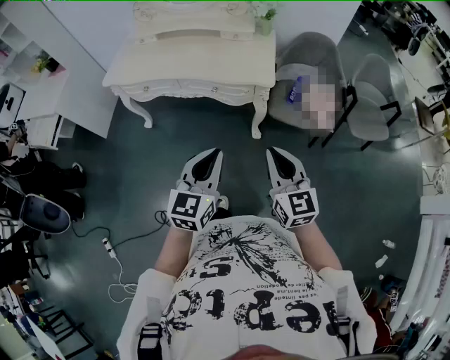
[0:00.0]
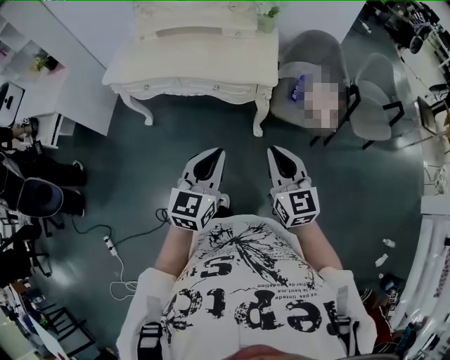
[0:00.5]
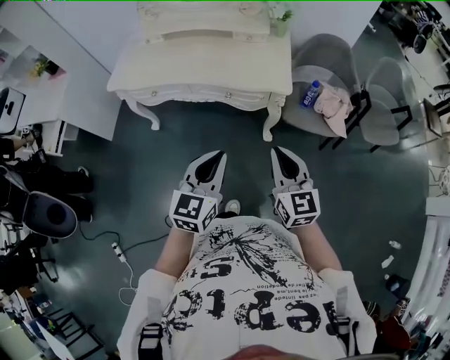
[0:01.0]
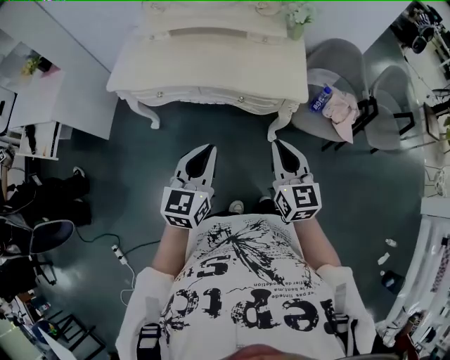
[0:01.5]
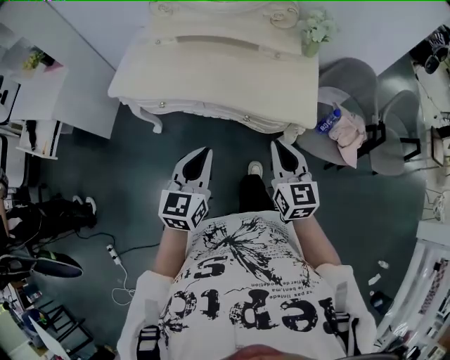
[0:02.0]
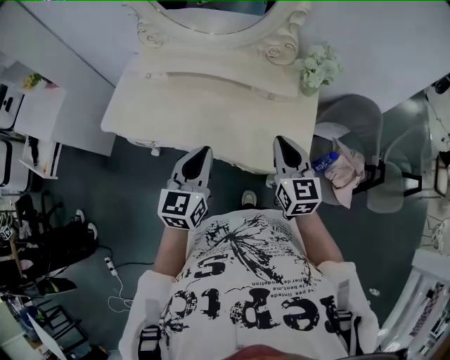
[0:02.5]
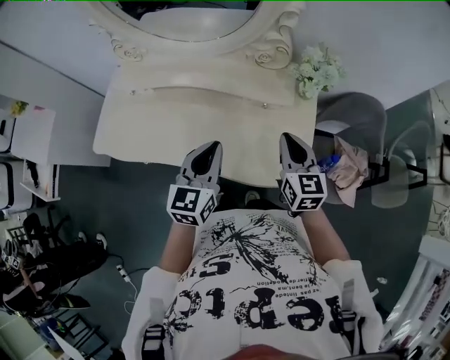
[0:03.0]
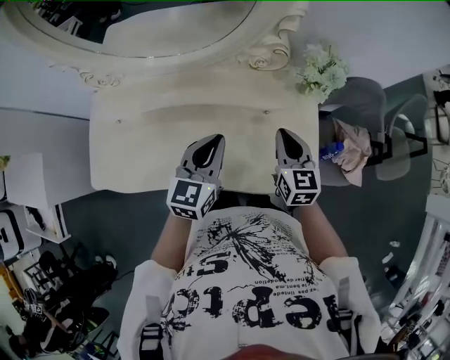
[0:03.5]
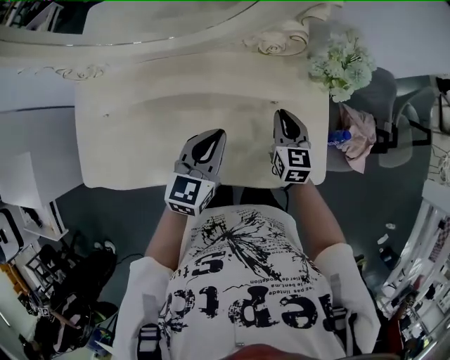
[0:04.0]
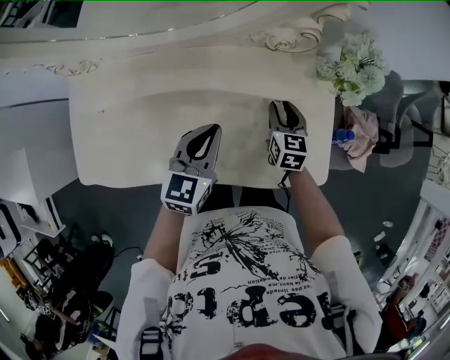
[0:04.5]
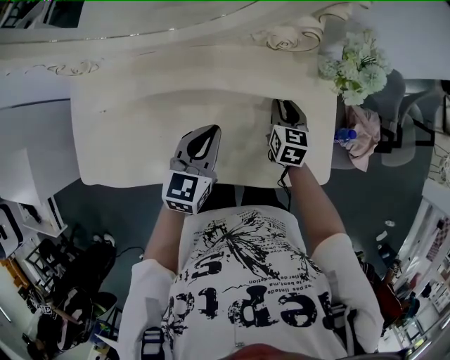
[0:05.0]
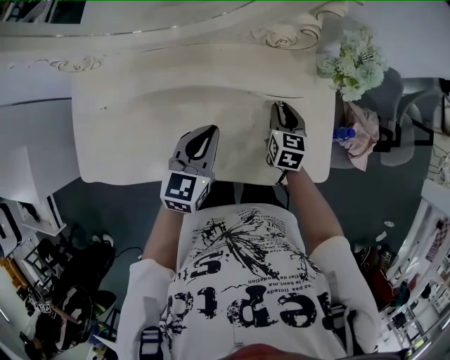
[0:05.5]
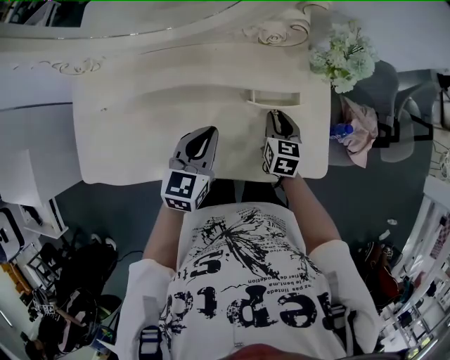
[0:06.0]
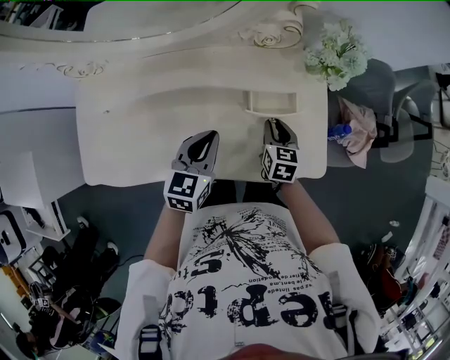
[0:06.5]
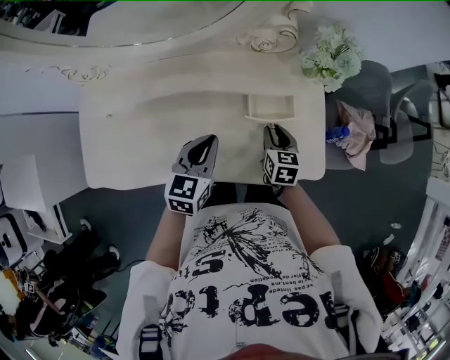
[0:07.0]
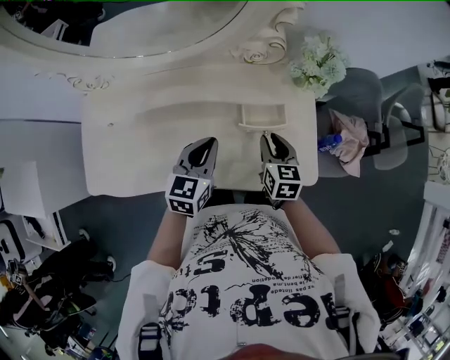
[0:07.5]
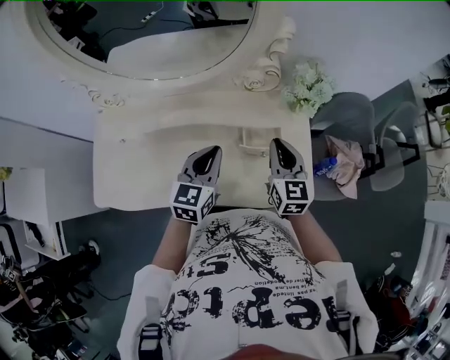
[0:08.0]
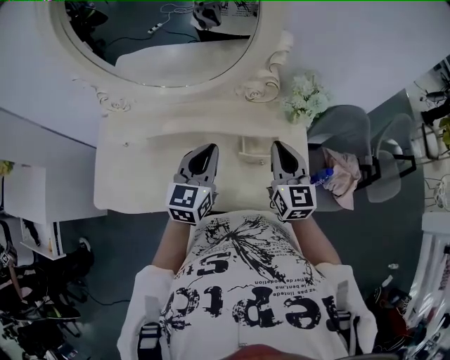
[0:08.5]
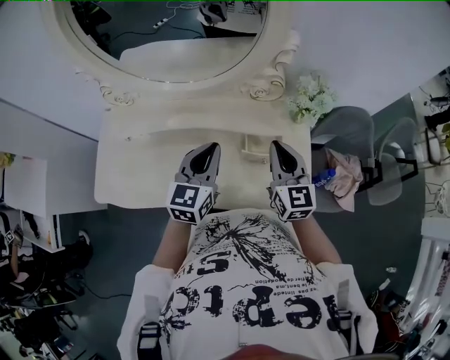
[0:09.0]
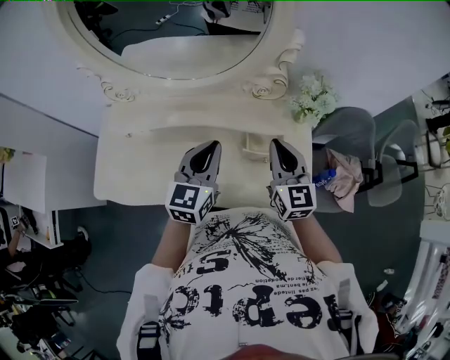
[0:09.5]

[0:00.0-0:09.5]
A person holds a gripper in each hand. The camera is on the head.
0:00.0 to 0:02.0: The two grippers go about 30 cm forward and to the left.
0:02.0 to 0:04.0: Both grippers are carried forward, approximately 40 cm. The right gripper swivels approximately 20 degrees. The left gripper turns by approximately 20 degrees.
0:04.0 to 0:05.5: The right gripper travels downward by about 5 cm.
0:05.5 to 0:07.5: The right gripper is displaced backward and upward by about 10 cm.
0:07.5 to 0:09.5: Both grippers travel together upward, roughly 15 cm. The right gripper changes its angle by about 30 degrees, and closes its fingers.

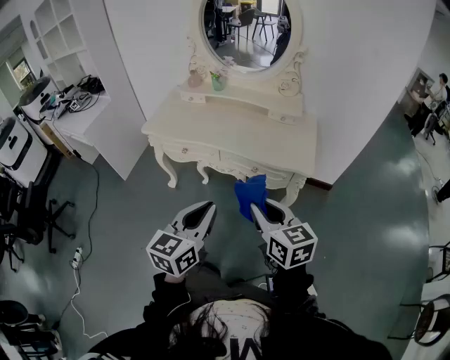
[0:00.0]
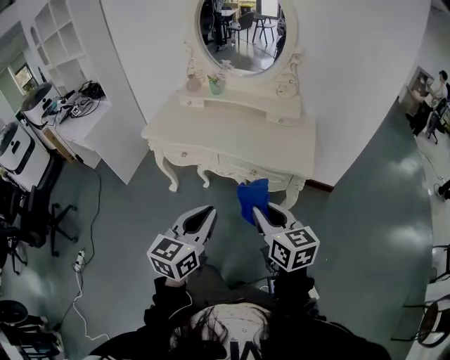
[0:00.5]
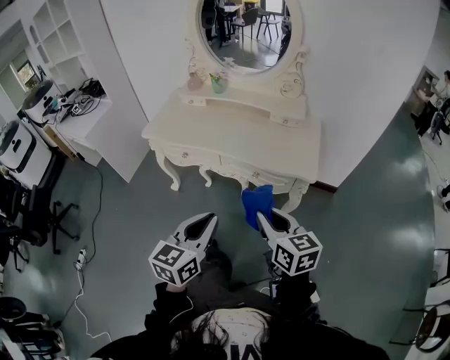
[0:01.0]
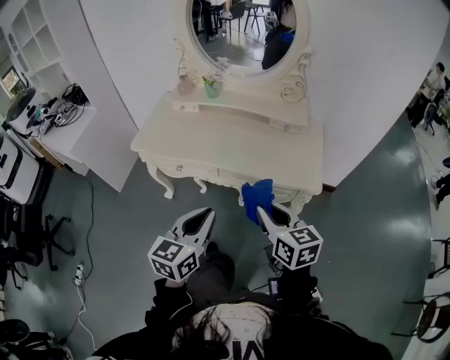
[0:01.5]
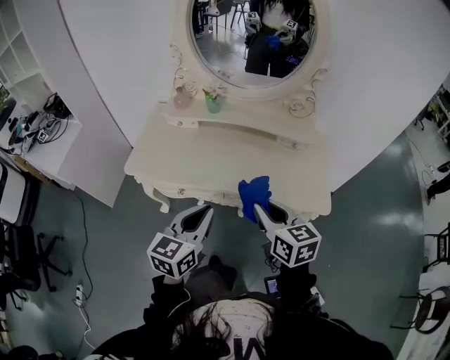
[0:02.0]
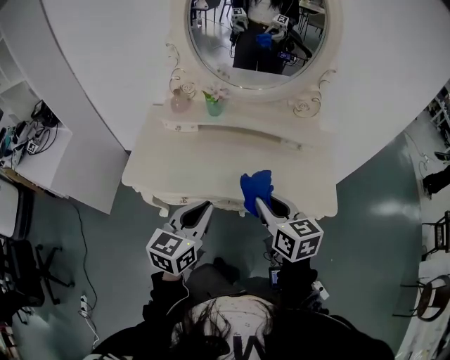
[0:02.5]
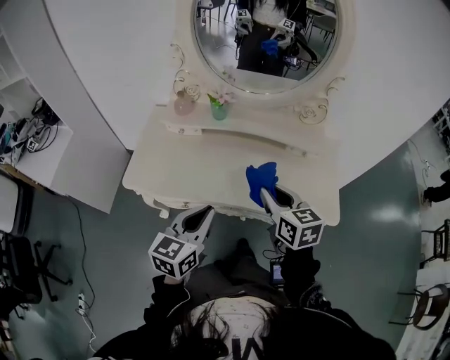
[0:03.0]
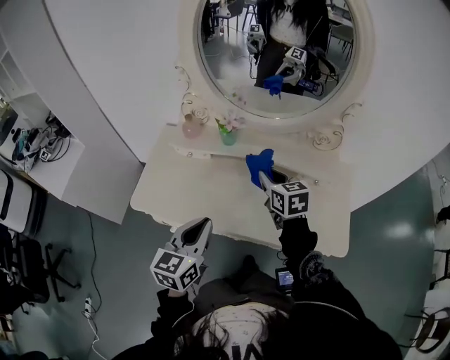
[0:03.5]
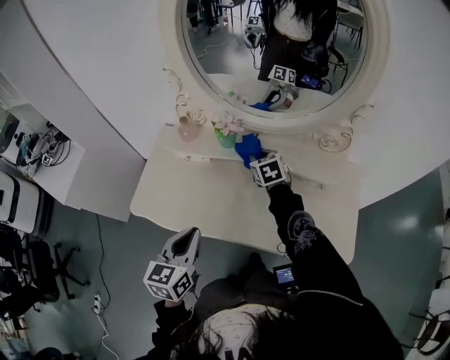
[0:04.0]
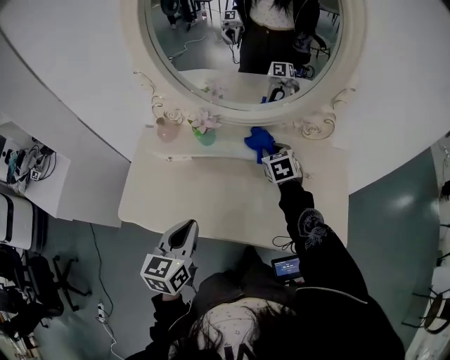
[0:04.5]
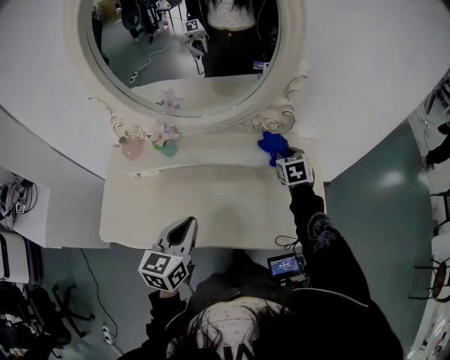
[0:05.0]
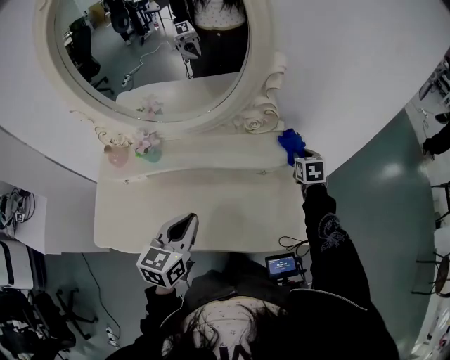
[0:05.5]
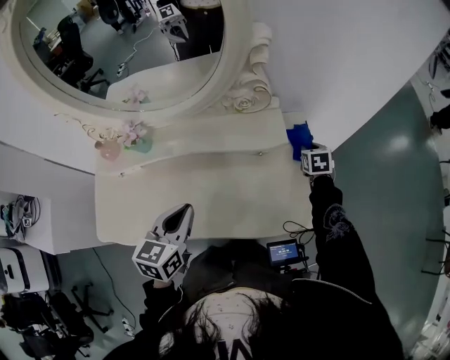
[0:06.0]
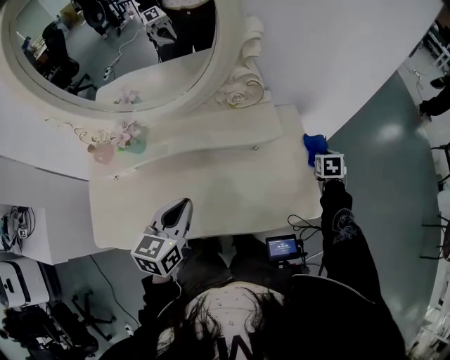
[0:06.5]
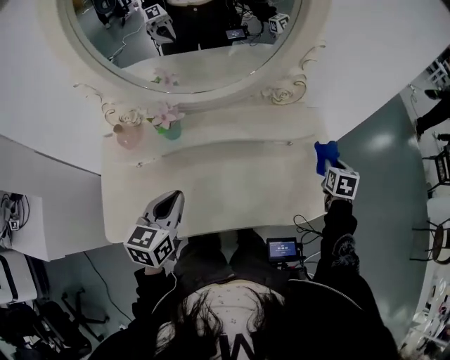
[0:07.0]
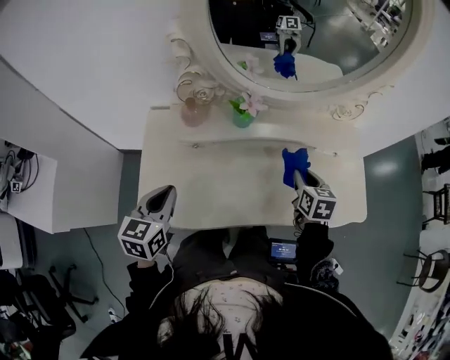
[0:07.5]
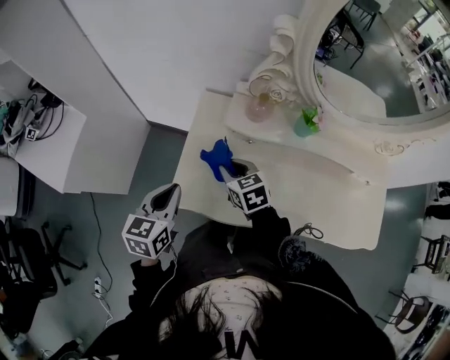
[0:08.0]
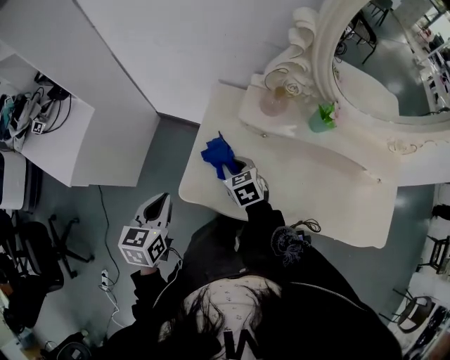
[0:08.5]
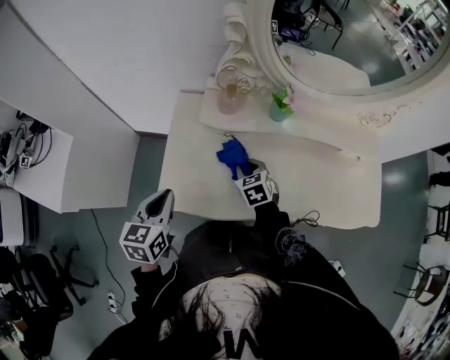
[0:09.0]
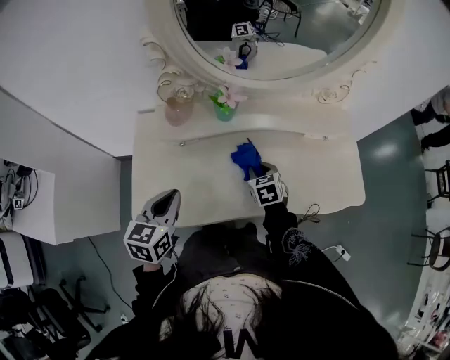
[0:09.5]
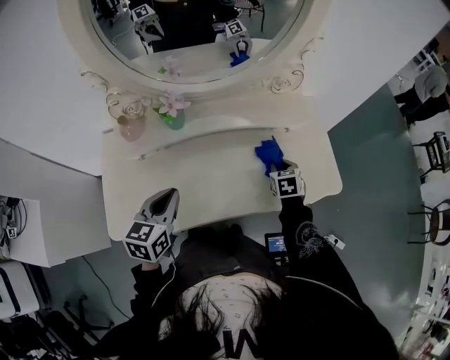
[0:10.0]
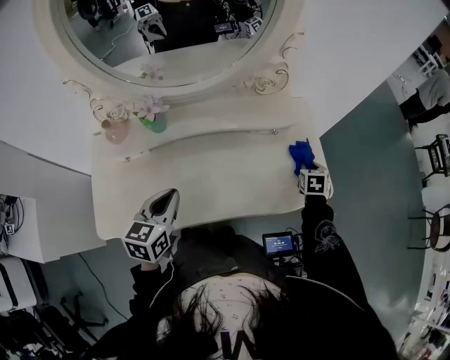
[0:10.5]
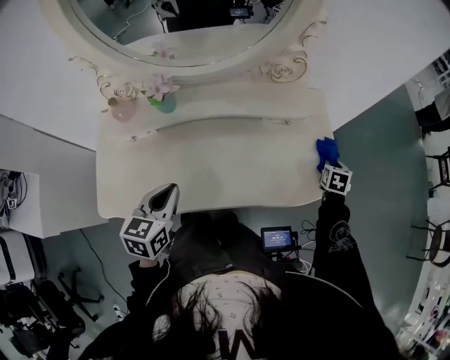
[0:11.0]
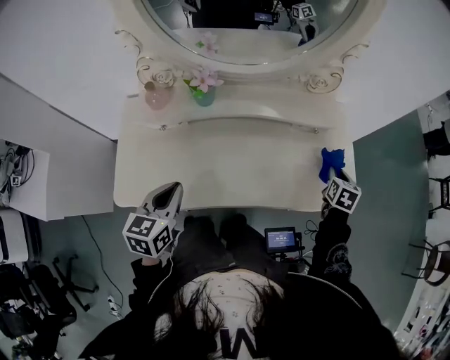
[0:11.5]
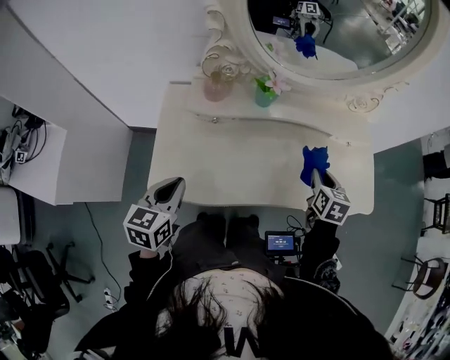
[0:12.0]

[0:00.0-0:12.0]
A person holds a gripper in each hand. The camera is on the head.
0:00.0 to 0:02.0: Both grippers move forward, approximately 25 cm.
0:02.0 to 0:04.0: The left gripper travels forward and to the left by some 15 cm, while the right gripper travels forward by some 40 cm, and swivels roughly 30 degrees.
0:04.0 to 0:06.0: The right gripper changes place by roughly 50 cm, and turns by roughly 40 degrees, while the left gripper ends up approximately 20 cm from where it was, and rotates roughly 20 degrees.
0:06.0 to 0:08.0: The pair of grippers is taken approximately 70 cm. The left gripper rotates roughly 20 degrees. The right gripper swivels roughly 50 degrees.
0:08.0 to 0:10.0: The right gripper changes place by approximately 60 cm, and swivels approximately 50 degrees. Meanwhile the left gripper moves some 30 cm, and swivels some 20 degrees.
0:10.0 to 0:12.0: The right gripper shifts some 15 cm upward and backward, and travels to the right and back again, about 25 cm each way; the left gripper moves to the left and backward, roughly 20 cm.

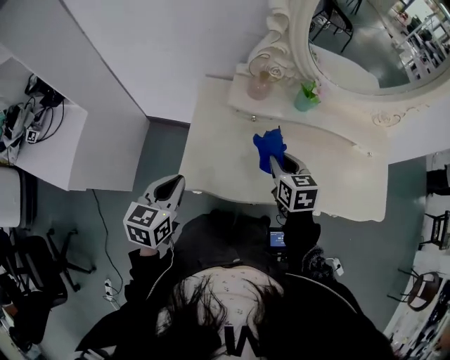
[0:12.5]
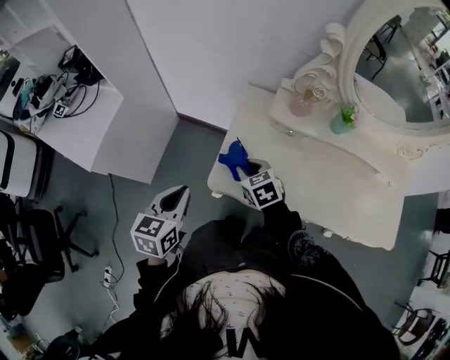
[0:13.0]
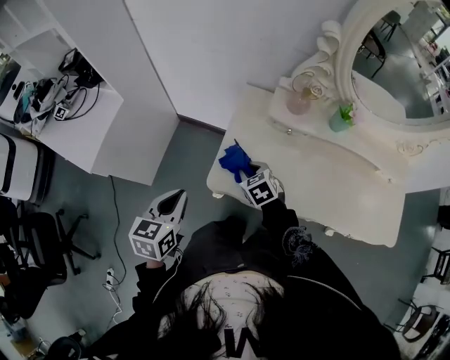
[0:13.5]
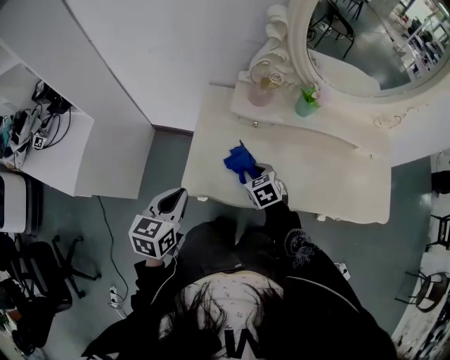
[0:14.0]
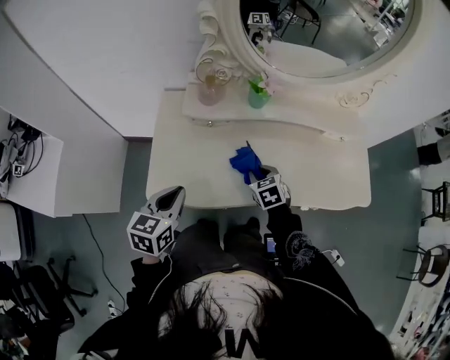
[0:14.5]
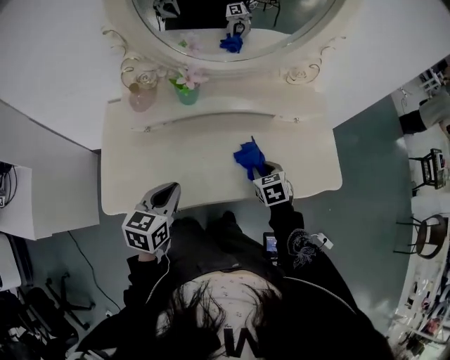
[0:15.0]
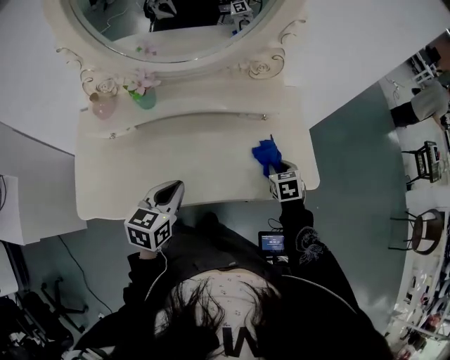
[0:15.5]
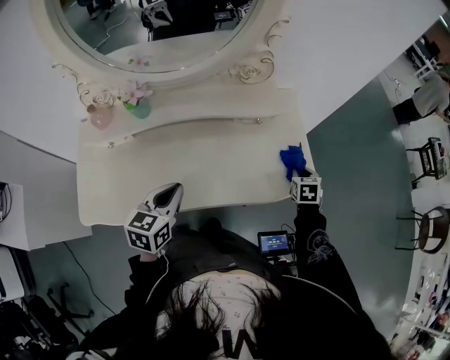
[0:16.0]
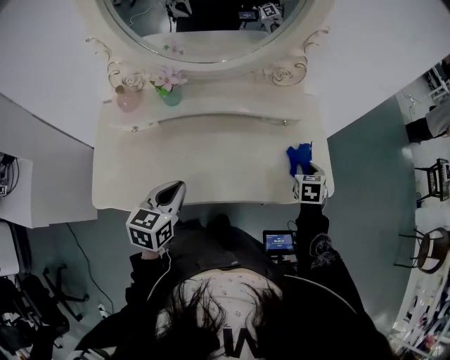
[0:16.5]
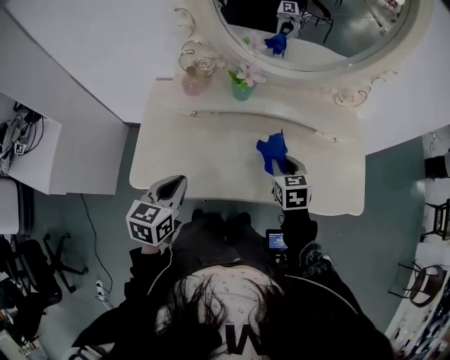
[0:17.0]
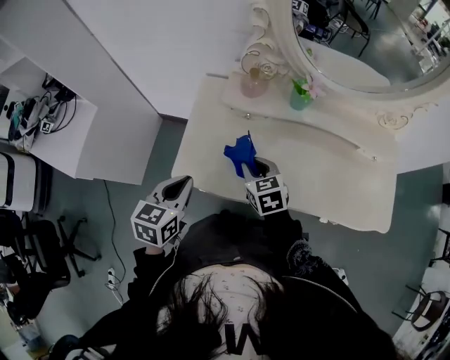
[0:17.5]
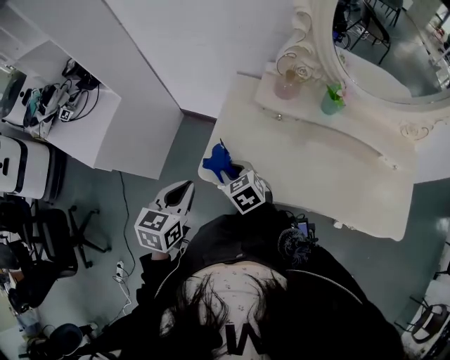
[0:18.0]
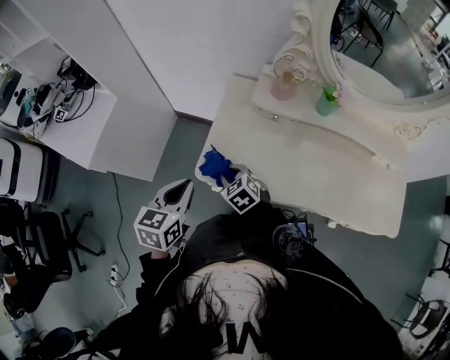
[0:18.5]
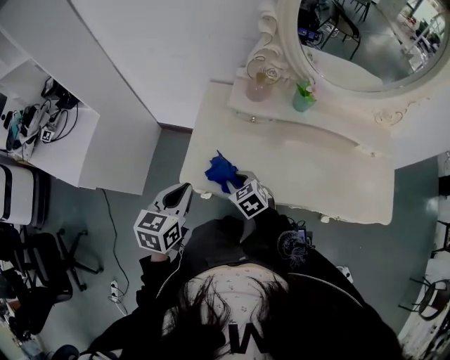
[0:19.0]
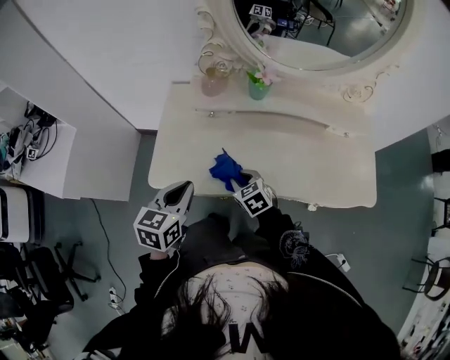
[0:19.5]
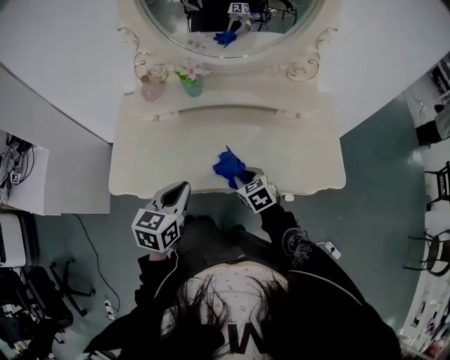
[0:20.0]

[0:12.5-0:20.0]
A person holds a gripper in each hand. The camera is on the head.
0:12.5 to 0:14.5: The right gripper is displaced downward by some 10 cm, and reaches about 20 cm to the left, then returns; the left gripper is displaced to the right by roughly 10 cm.
0:14.5 to 0:16.5: The left gripper shifts by about 25 cm, while the right gripper ends up about 50 cm from where it was, and rotates about 30 degrees.
0:16.5 to 0:18.0: The left gripper changes place by some 40 cm, and turns by approximately 20 degrees. Meanwhile the right gripper changes place by roughly 70 cm, and turns by about 60 degrees.
0:18.0 to 0:20.0: The two grippers go approximately 35 cm to the right. The right gripper swivels approximately 20 degrees.
